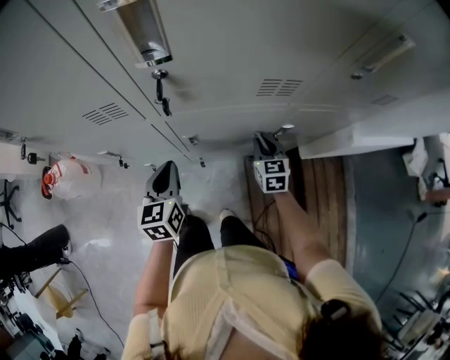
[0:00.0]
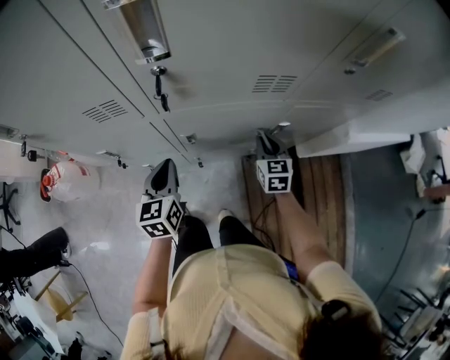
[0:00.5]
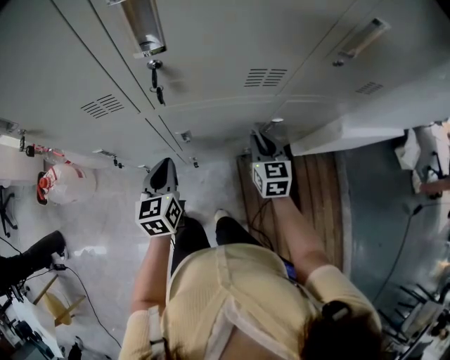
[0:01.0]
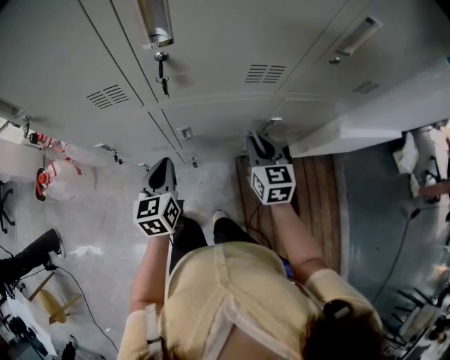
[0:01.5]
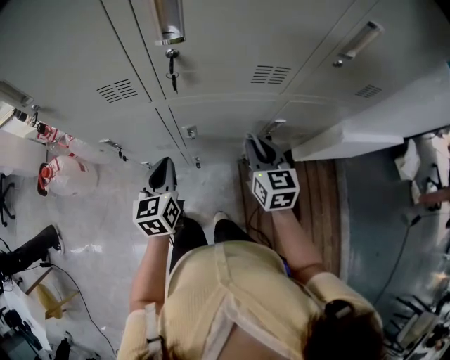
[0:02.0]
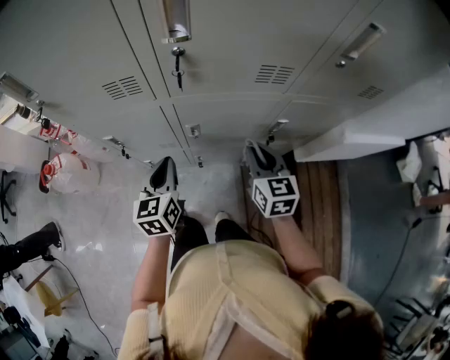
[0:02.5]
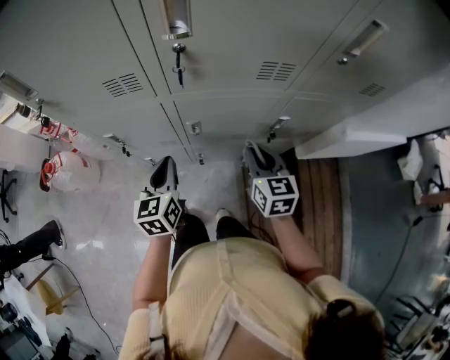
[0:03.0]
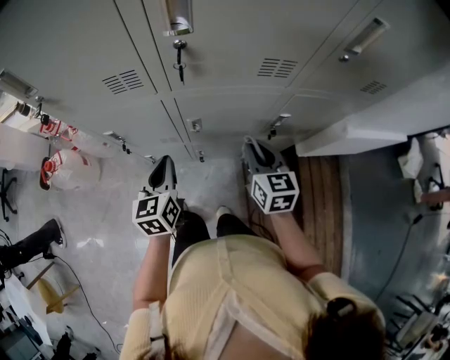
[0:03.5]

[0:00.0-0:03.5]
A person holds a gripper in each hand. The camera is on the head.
0:00.0 to 0:02.0: The right gripper is displaced upward and backward by approximately 15 cm.
0:02.0 to 0:03.5: The grippers move only a little.

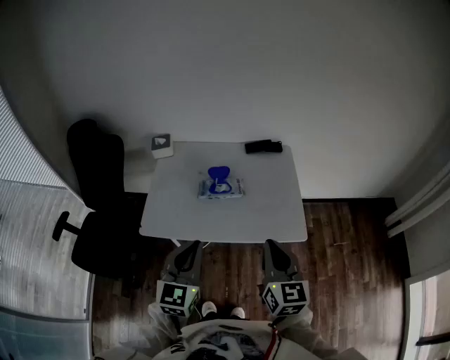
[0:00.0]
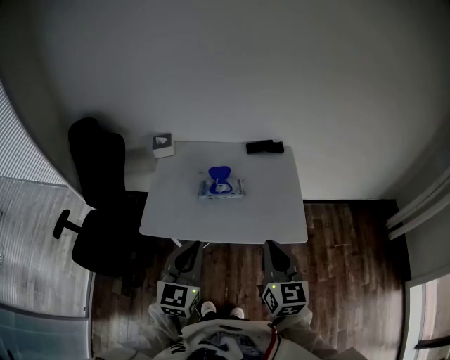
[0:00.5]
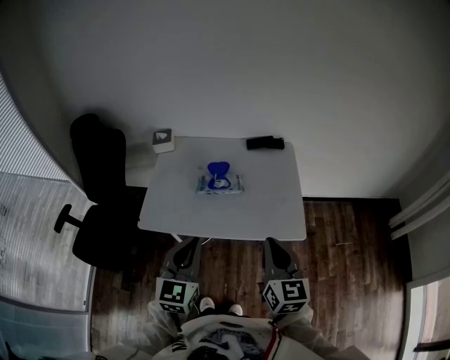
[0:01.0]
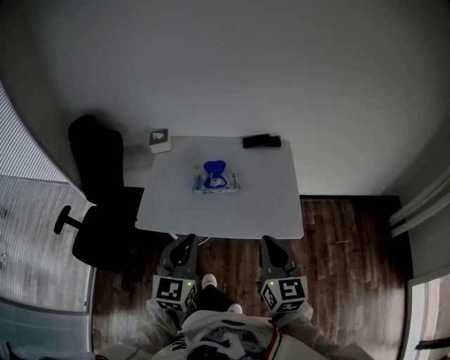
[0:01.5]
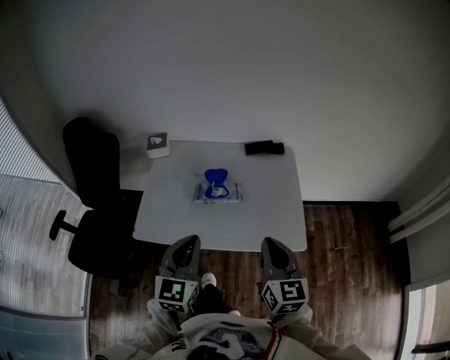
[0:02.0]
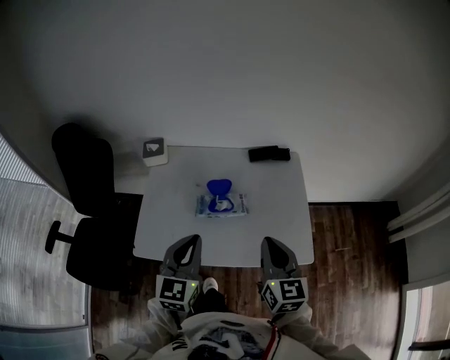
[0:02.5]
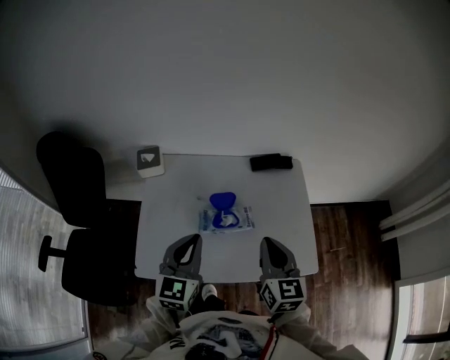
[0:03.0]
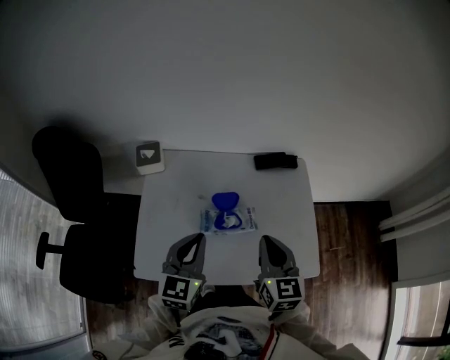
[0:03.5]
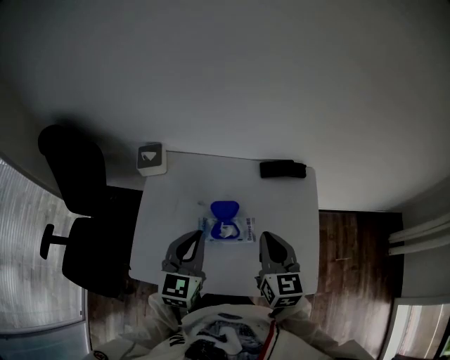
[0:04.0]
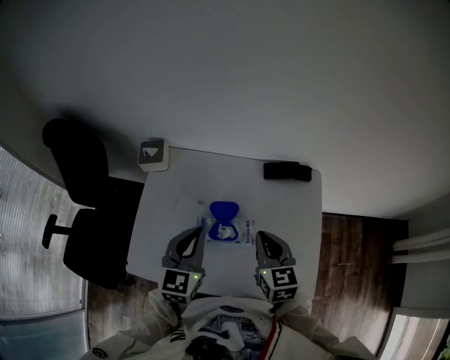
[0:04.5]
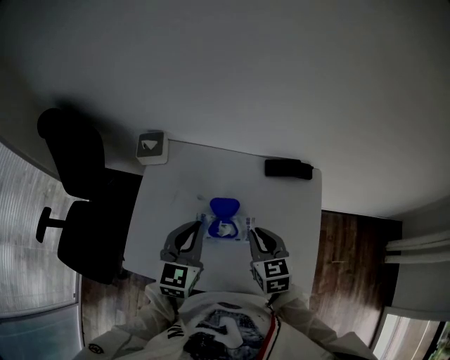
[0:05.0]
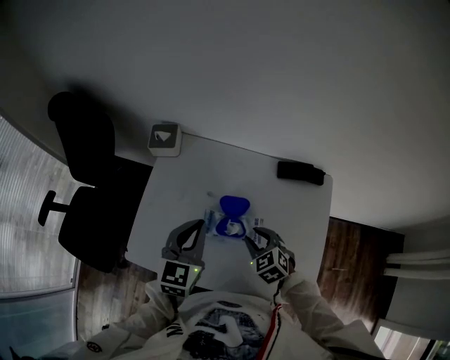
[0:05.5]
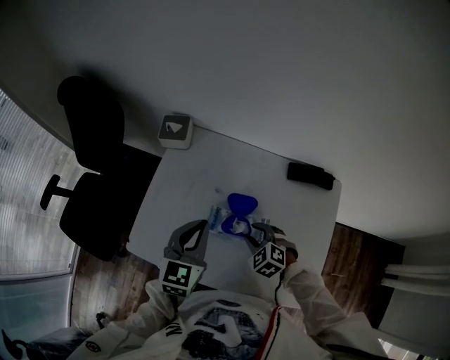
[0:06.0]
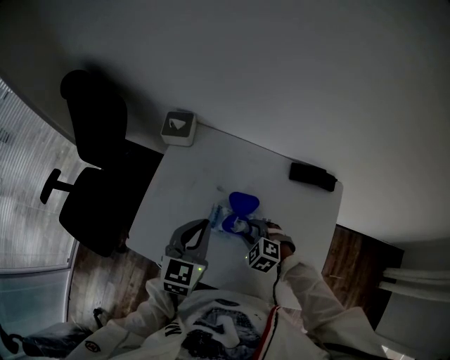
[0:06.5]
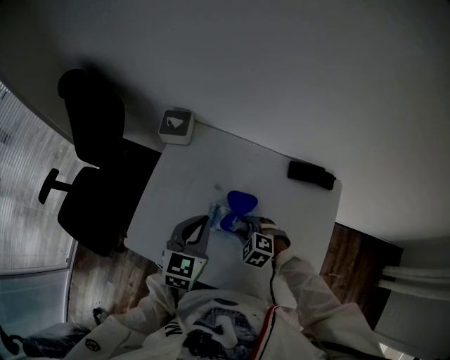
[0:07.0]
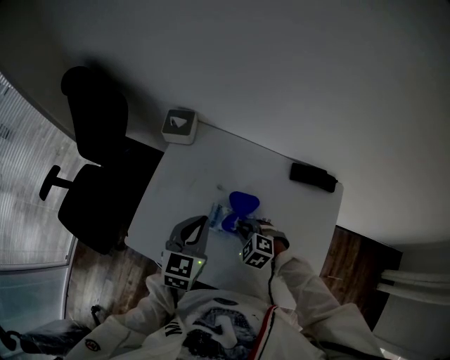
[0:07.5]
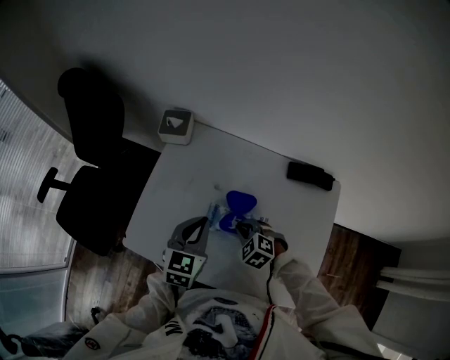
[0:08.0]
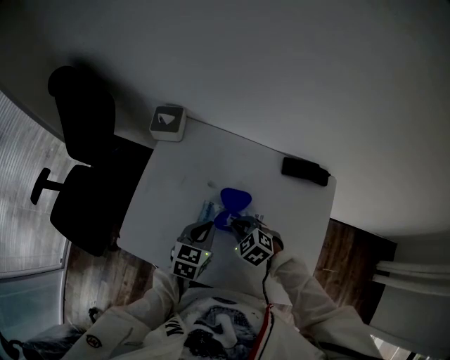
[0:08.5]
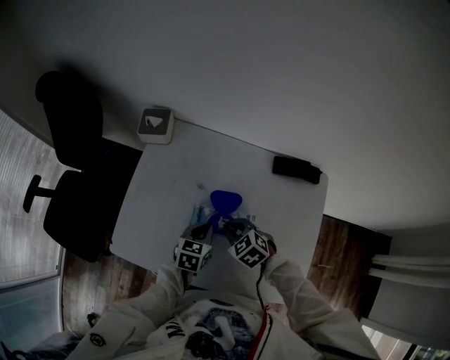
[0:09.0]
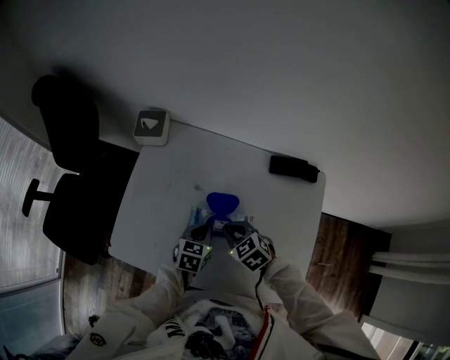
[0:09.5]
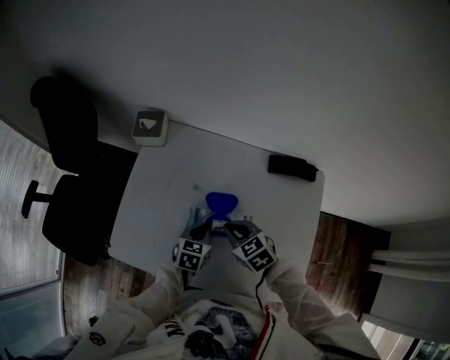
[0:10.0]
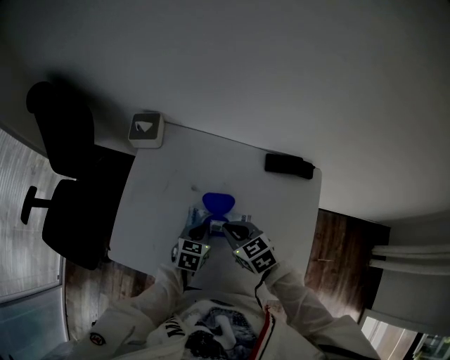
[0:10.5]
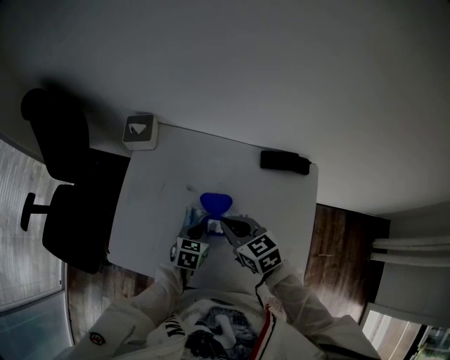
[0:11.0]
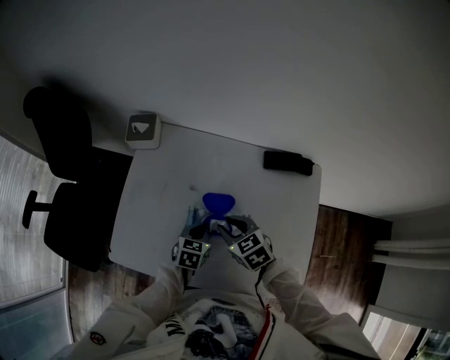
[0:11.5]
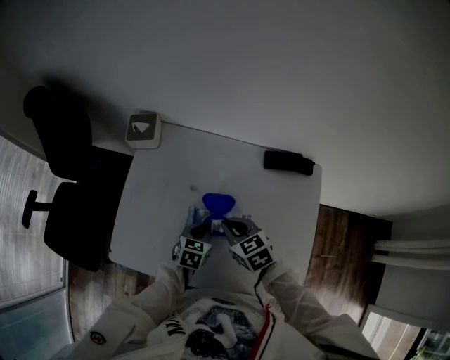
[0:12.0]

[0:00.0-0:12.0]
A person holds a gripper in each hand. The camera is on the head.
0:00.0 to 0:02.0: Both grippers move forward, approximately 5 cm.
0:02.0 to 0:04.0: Both grippers move forward, about 25 cm.
0:04.0 to 0:06.0: The right gripper travels downward by some 20 cm, tips its fingers downward by some 40 degrees, and opens up; the left gripper changes place by roughly 5 cm.
0:06.0 to 0:08.0: The right gripper closes its fingers.
0:08.0 to 0:10.0: The left gripper is displaced downward and to the right by some 15 cm, and changes its angle by some 20 degrees, while the right gripper goes roughly 5 cm upward, and changes its angle by some 30 degrees.
0:10.0 to 0:12.0: The right gripper opens, then closes again.

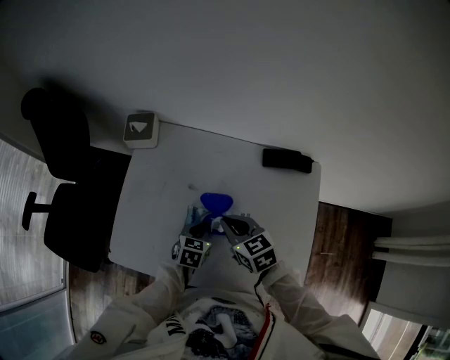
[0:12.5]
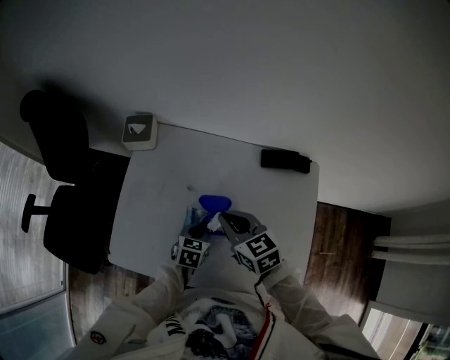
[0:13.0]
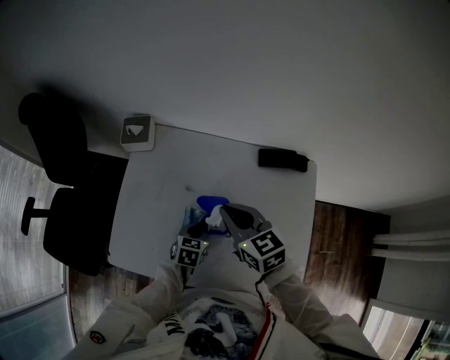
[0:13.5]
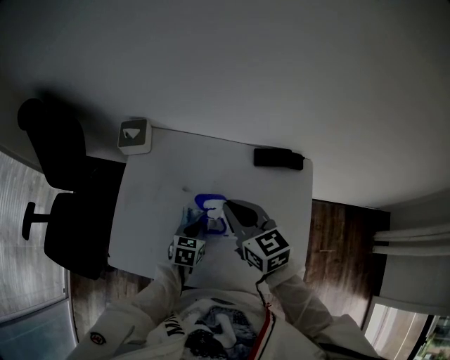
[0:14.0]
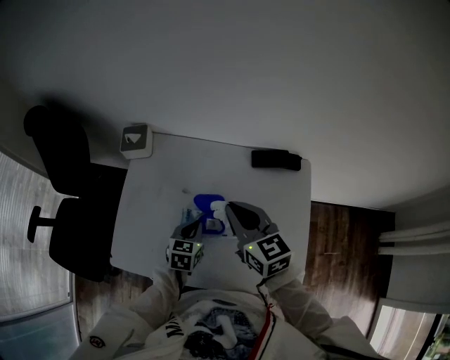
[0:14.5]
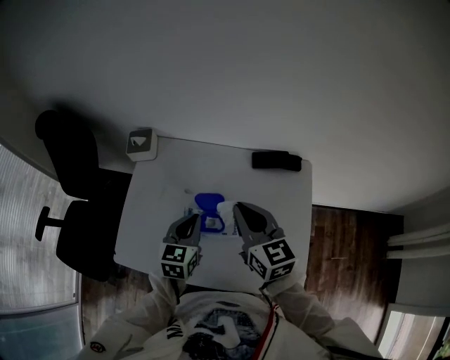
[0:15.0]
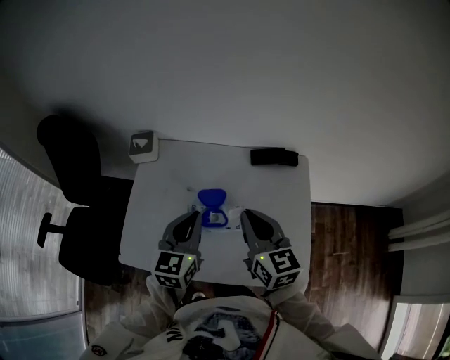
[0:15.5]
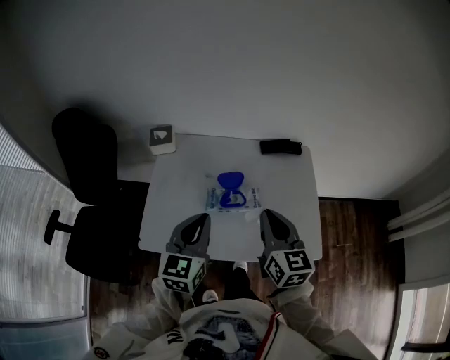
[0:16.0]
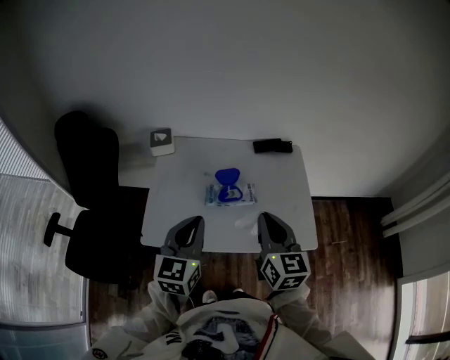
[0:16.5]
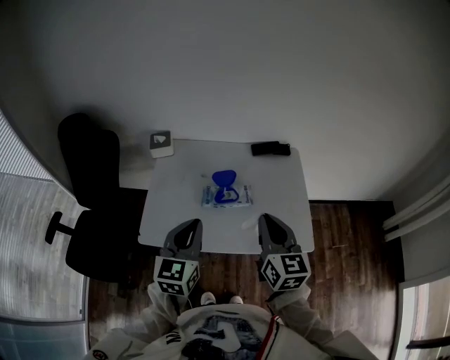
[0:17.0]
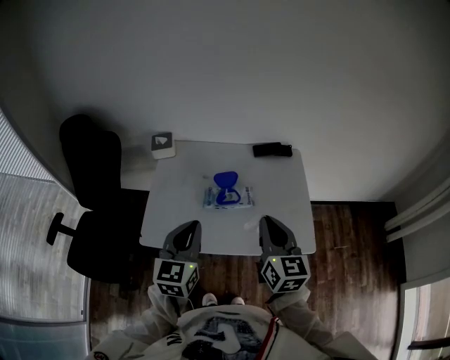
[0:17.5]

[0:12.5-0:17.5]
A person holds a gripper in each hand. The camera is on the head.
0:12.5 to 0:15.0: The right gripper heads upward and to the right, covering about 15 cm, and rotates roughly 30 degrees. The left gripper is displaced upward by roughly 15 cm, and changes its angle by some 20 degrees.
0:15.0 to 0:17.5: The left gripper moves backward and upward, roughly 25 cm. Meanwhile the right gripper is displaced backward by some 20 cm, and turns by about 20 degrees.

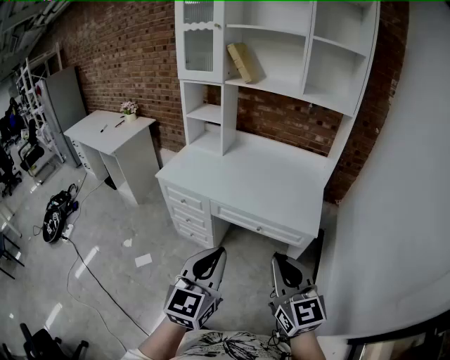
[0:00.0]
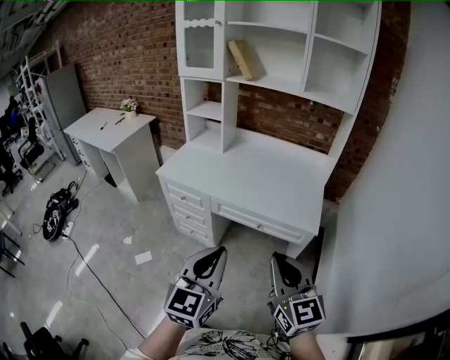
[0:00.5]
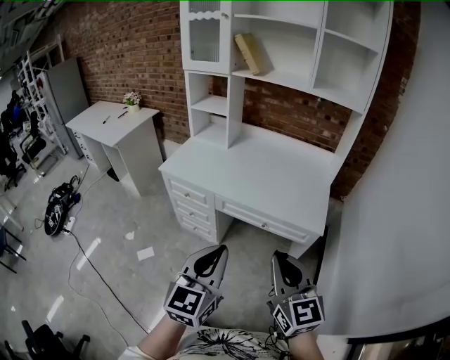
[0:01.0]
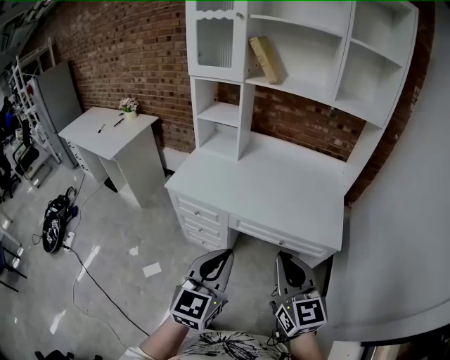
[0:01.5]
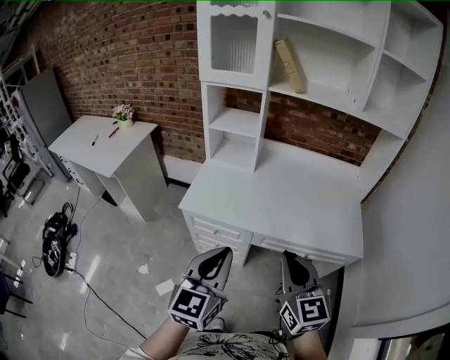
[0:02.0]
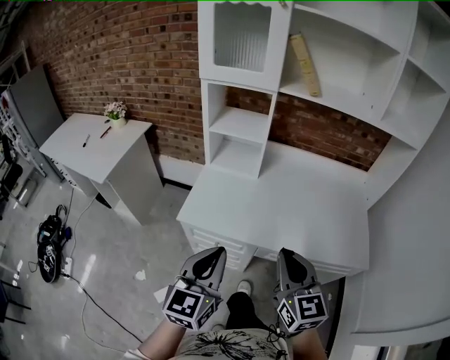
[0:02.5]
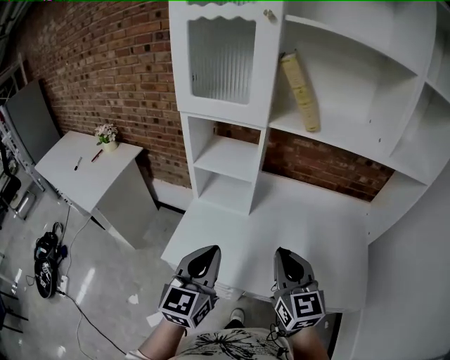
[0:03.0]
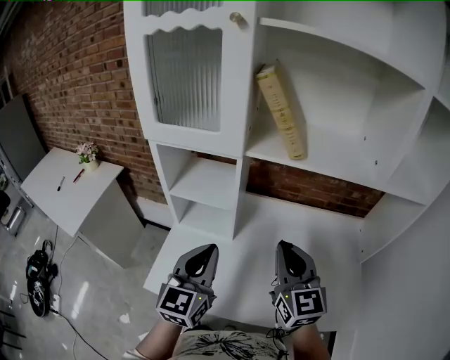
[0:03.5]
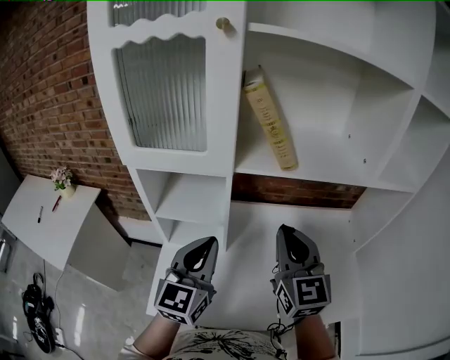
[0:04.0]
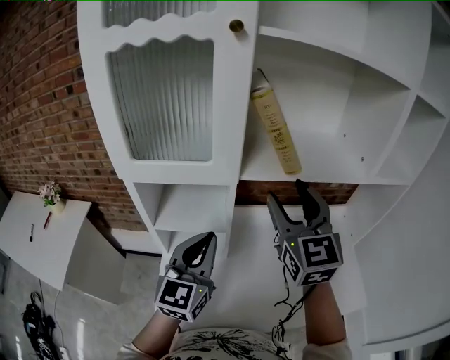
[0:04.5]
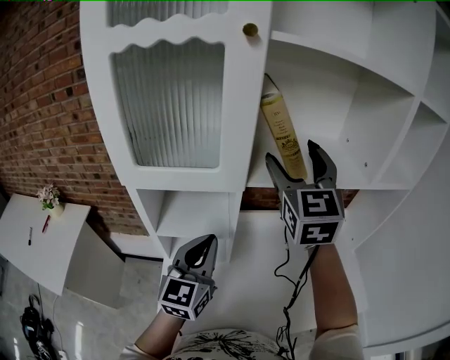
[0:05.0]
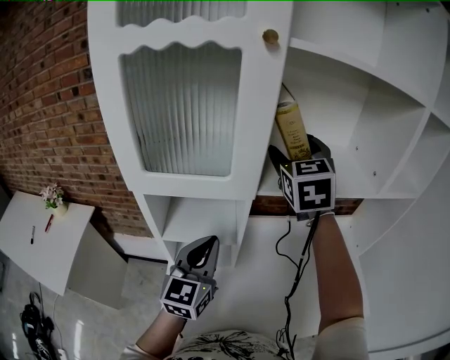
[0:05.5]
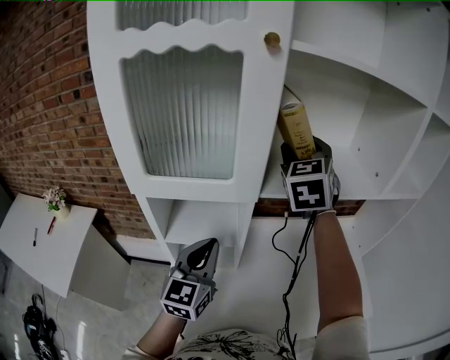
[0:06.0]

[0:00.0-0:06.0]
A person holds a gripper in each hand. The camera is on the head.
0:00.0 to 0:02.0: The grippers both shift to the left and forward by about 35 cm.
0:02.0 to 0:04.0: The pair of grippers is taken forward, approximately 50 cm.
0:04.0 to 0:06.0: The right gripper heads forward and upward, covering some 25 cm, swivels approximately 30 degrees, and opens; the left gripper heads to the left and forward, covering some 10 cm.
